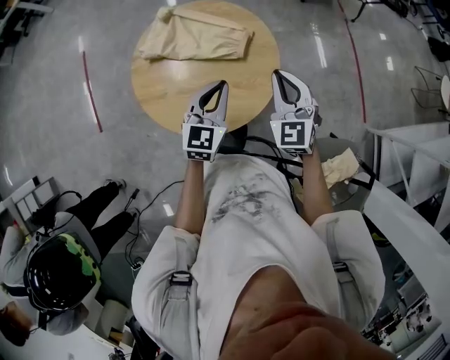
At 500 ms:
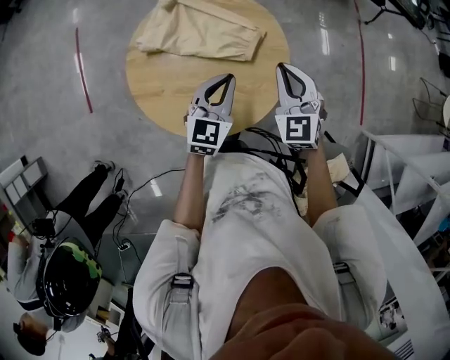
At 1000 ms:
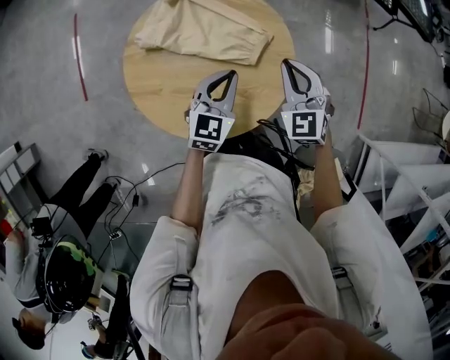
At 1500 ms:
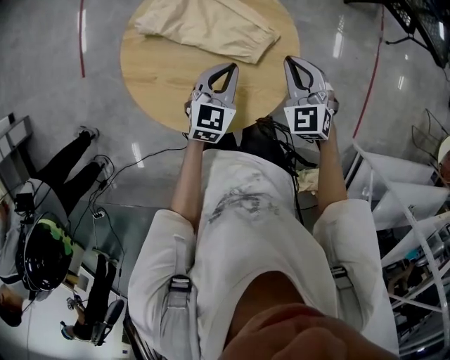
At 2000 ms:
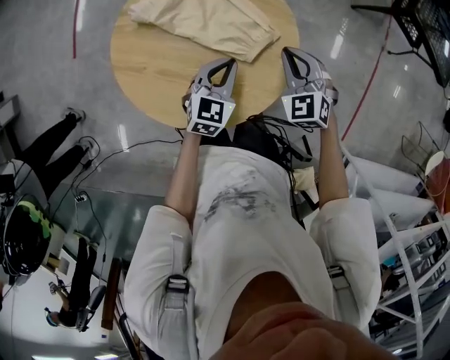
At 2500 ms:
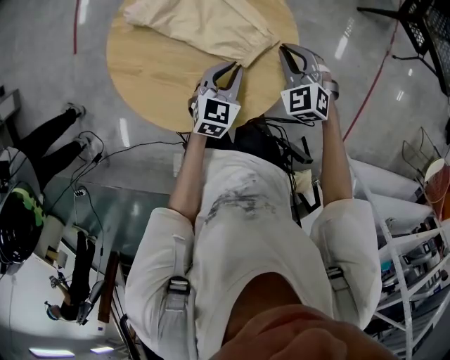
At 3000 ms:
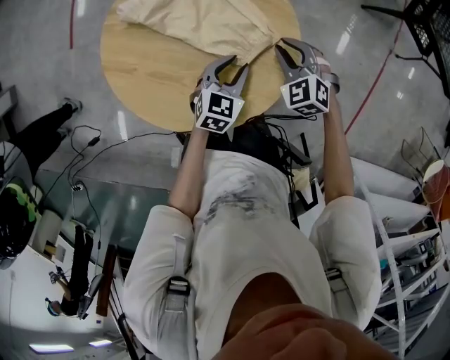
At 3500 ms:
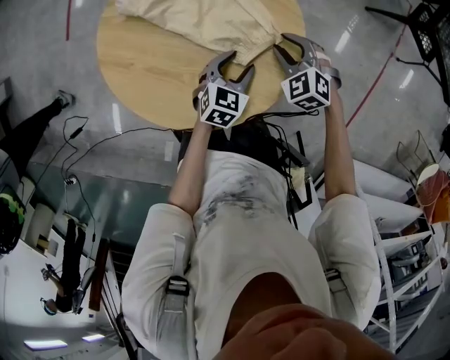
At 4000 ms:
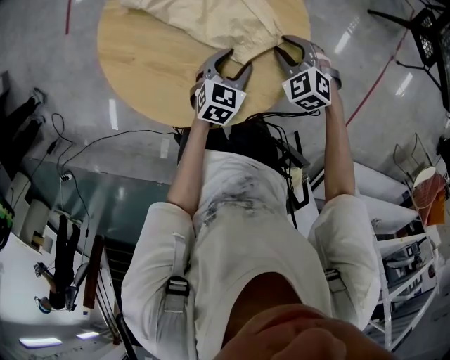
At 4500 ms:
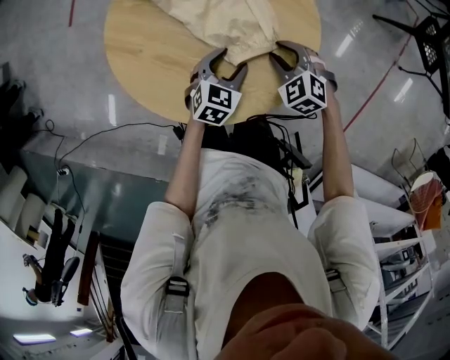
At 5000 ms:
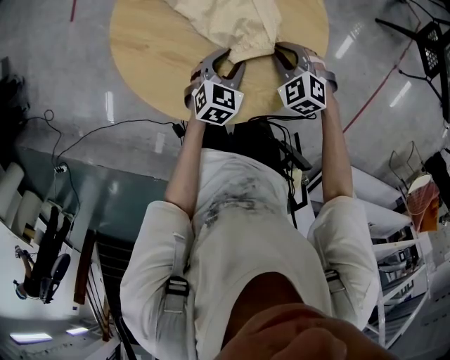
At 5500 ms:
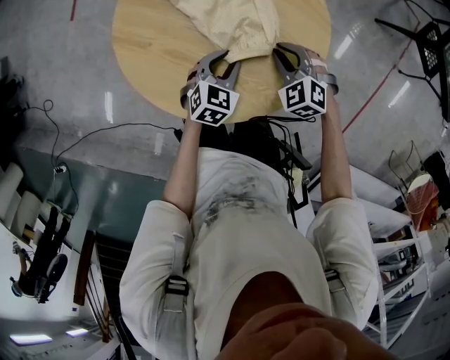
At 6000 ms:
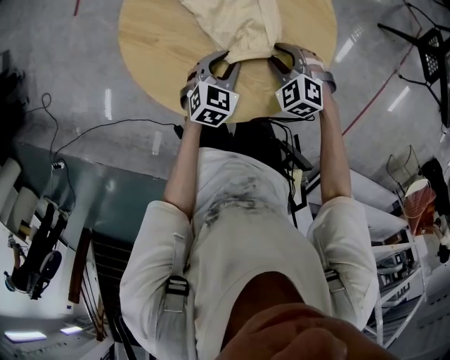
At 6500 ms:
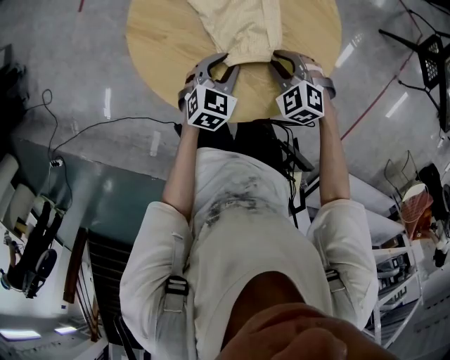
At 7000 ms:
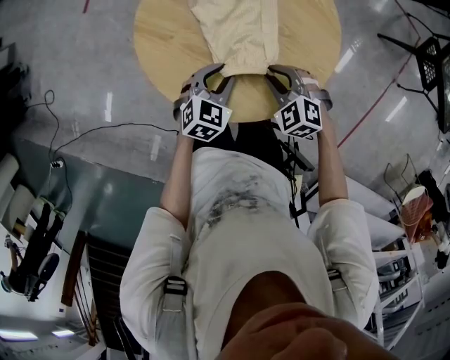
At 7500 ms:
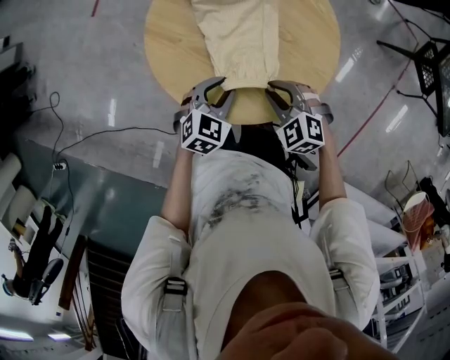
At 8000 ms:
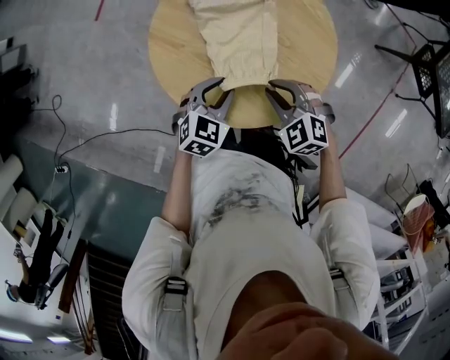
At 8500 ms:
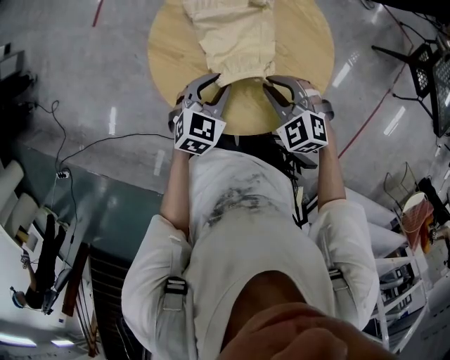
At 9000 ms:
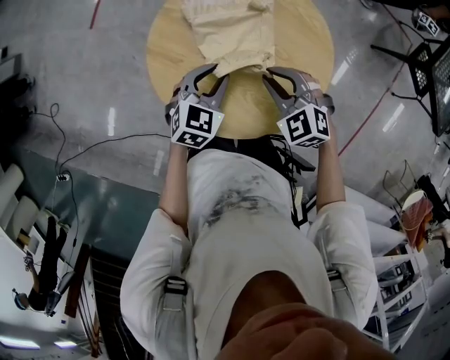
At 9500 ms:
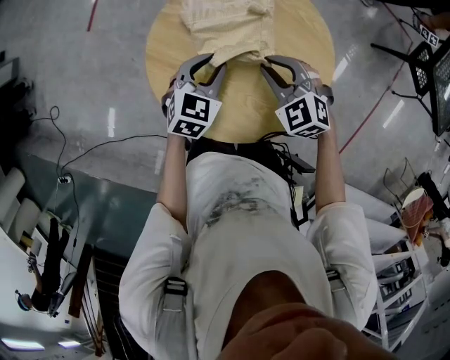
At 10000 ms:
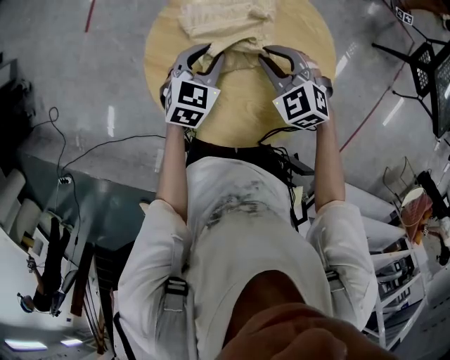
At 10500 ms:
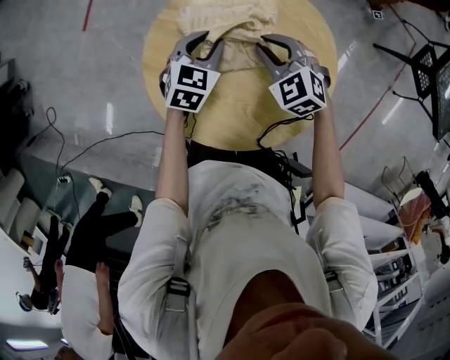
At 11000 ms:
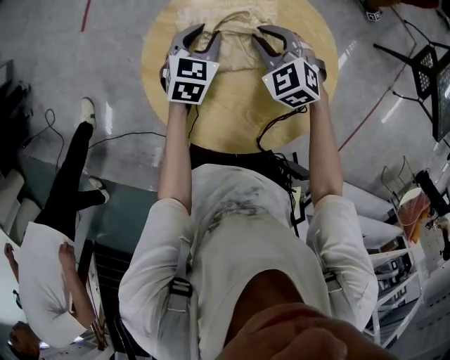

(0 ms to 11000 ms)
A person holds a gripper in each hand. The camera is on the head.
0 ms - 2000 ms: The left gripper travels downward and forward by some 20 cm, and changes its angle by roughly 20 degrees, while the right gripper moves forward and downward, approximately 25 cm, and turns by about 40 degrees.
2000 ms - 3500 ms: The grippers both shift downward by roughly 10 cm. The right gripper rotates some 20 degrees, and opens up. The left gripper opens its fingers.
3500 ms - 5500 ms: The grippers both shift to the left by some 5 cm. The left gripper closes its fingers.
5500 ms - 7500 ms: The left gripper shifts some 10 cm upward, to the left and backward. The right gripper moves backward, to the left and upward, approximately 15 cm.
7500 ms - 9000 ms: Both grippers move forward, about 10 cm.
9000 ms - 11000 ms: Both grippers move forward and downward, roughly 20 cm.

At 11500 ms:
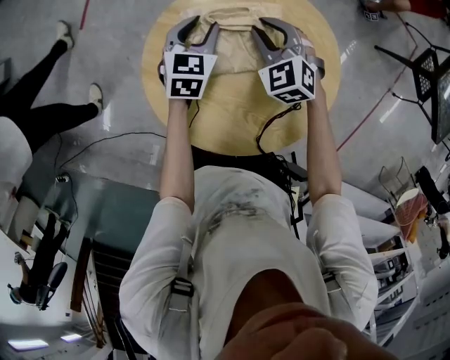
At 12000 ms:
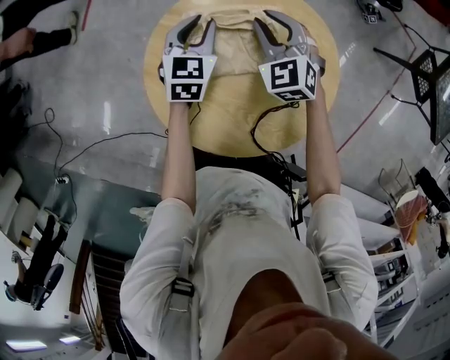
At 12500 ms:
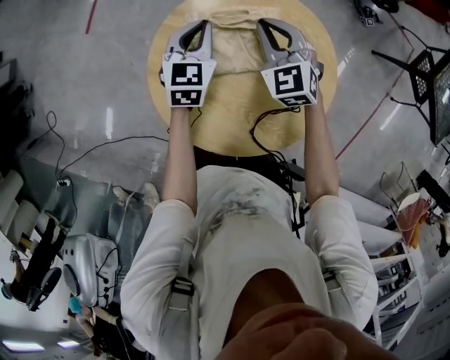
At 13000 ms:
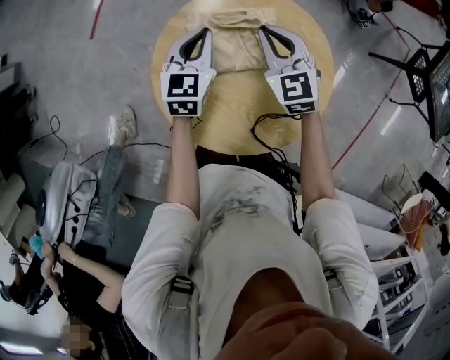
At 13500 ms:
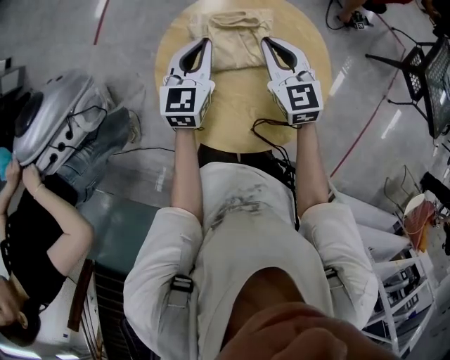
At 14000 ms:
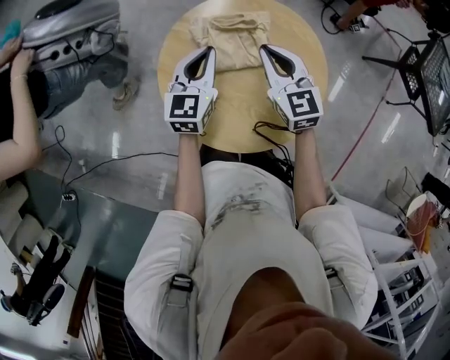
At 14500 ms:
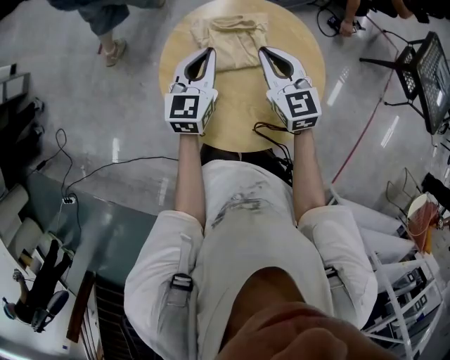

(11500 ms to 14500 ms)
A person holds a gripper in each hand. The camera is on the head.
11500 ms - 13000 ms: Both grippers move upward, about 10 cm. The left gripper closes. The right gripper turns by approximately 20 degrees, and closes up.
13000 ms - 14500 ms: The grippers both shift backward and upward by roughly 10 cm.

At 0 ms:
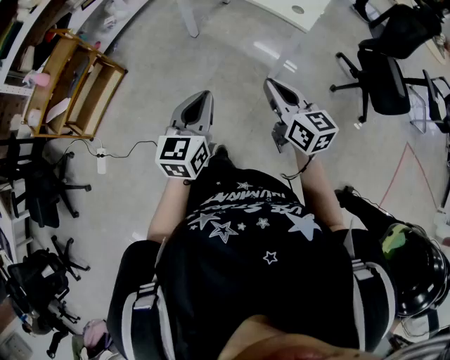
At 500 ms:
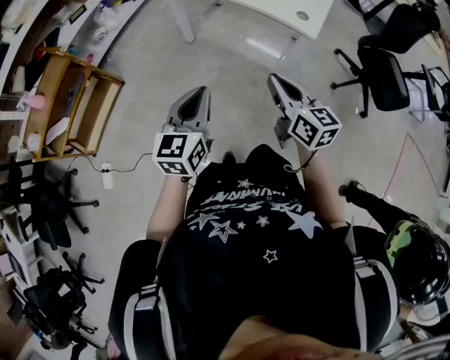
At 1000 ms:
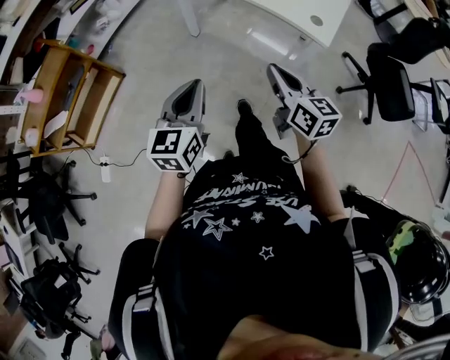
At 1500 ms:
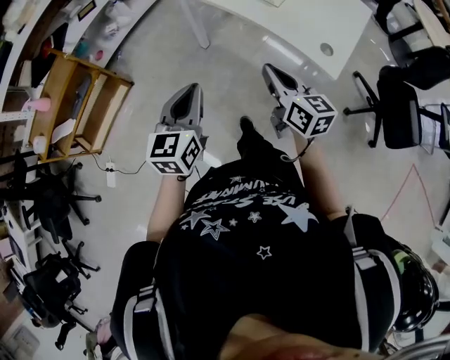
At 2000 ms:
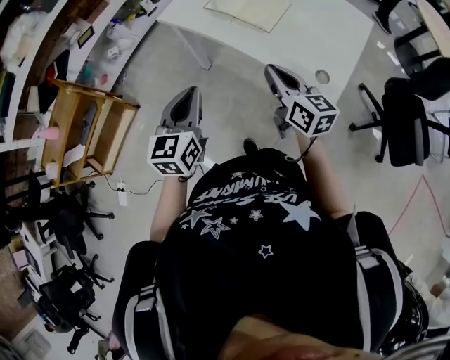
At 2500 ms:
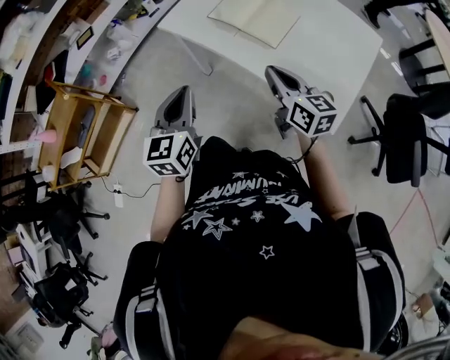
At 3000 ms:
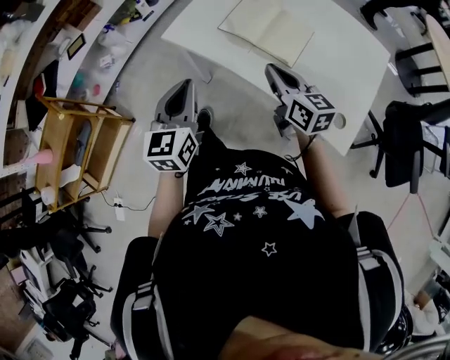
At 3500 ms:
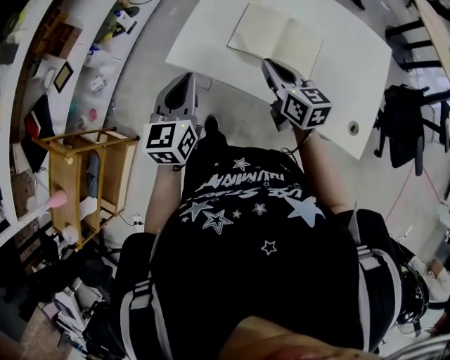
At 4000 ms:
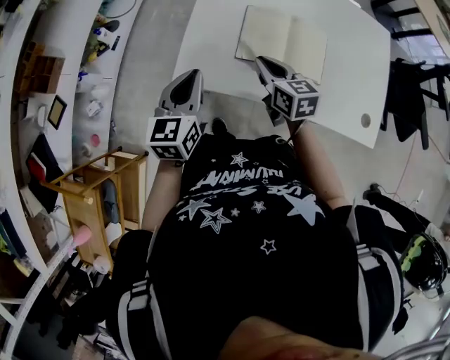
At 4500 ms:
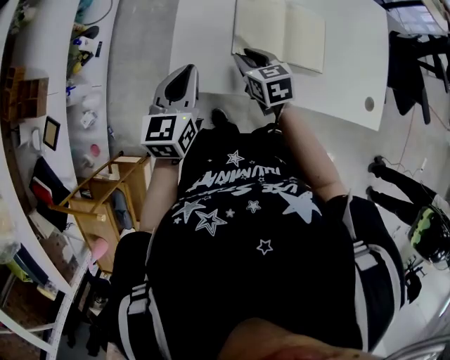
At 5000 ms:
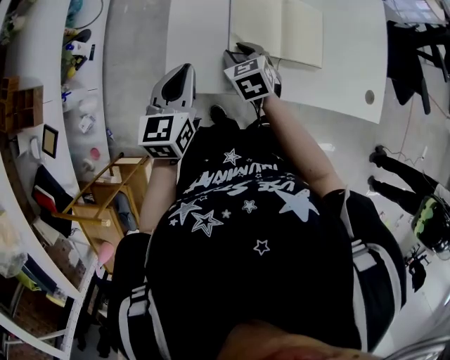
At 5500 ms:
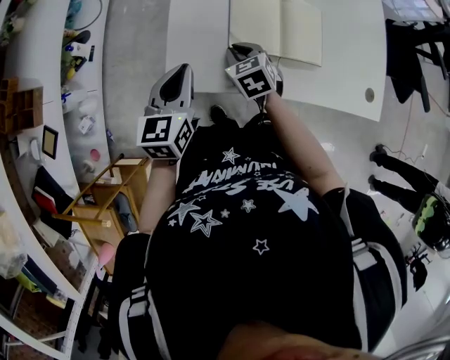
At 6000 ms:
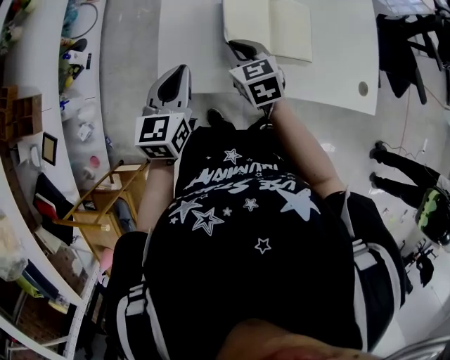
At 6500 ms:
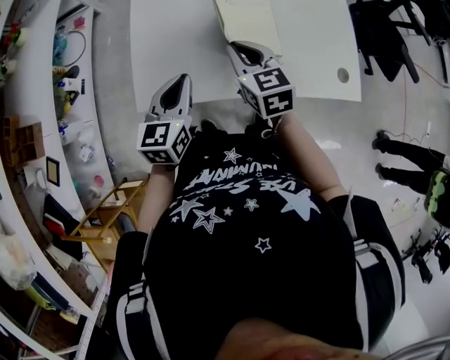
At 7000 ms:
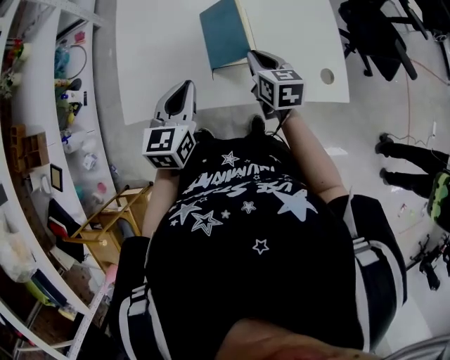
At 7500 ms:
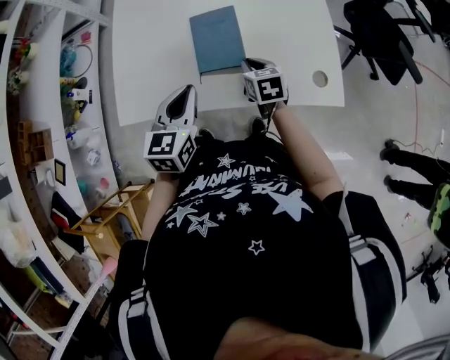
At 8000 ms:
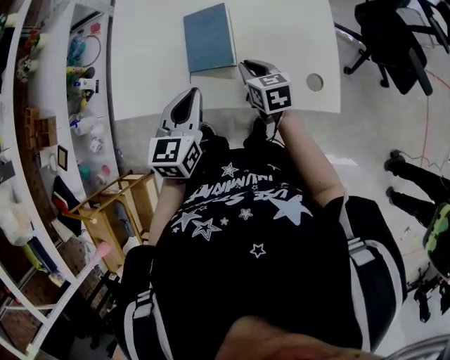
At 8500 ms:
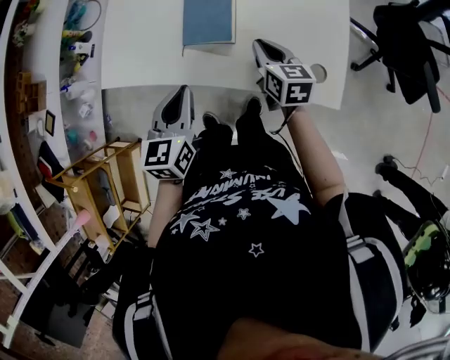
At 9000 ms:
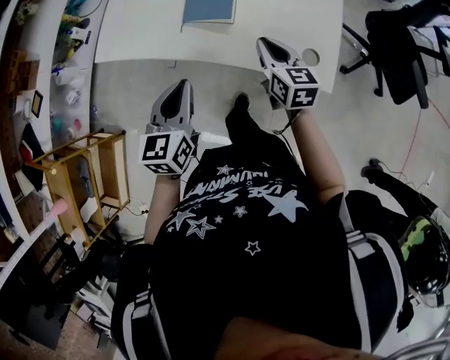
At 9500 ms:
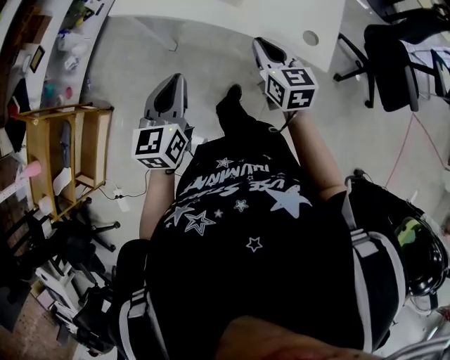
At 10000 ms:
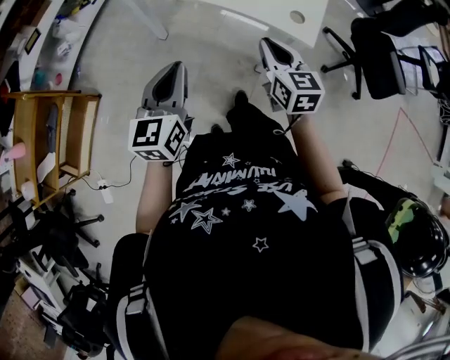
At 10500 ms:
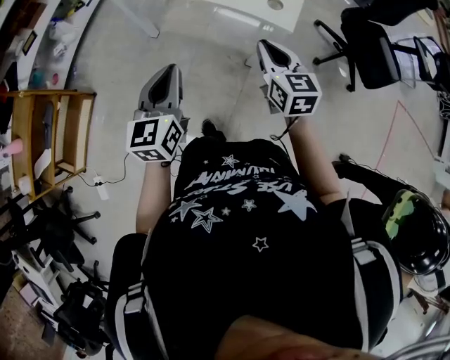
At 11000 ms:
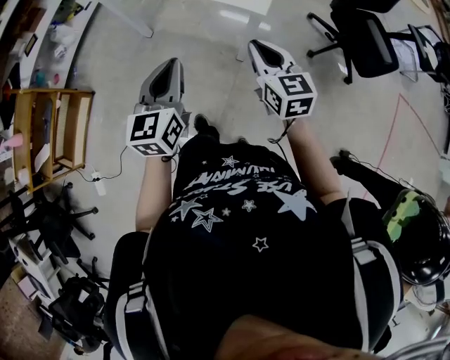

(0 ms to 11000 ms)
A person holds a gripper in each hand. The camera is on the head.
0 ms - 2000 ms: The grippers both shift forward by about 40 cm.
2000 ms - 3500 ms: Both grippers travel together forward, roughly 30 cm.
3500 ms - 5500 ms: The left gripper travels forward and downward by approximately 15 cm, and turns by approximately 20 degrees. The right gripper moves downward, forward and to the left, roughly 20 cm, and angles its fingers downward, by roughly 30 degrees.
5500 ms - 7500 ms: The two grippers go about 25 cm to the right. The right gripper changes its angle by roughly 30 degrees.
7500 ms - 9000 ms: The right gripper heads backward, to the right and upward, covering about 15 cm, and changes its angle by some 20 degrees, while the left gripper heads backward, covering about 15 cm, and turns by about 20 degrees.
9000 ms - 11000 ms: Both grippers move backward, approximately 35 cm.

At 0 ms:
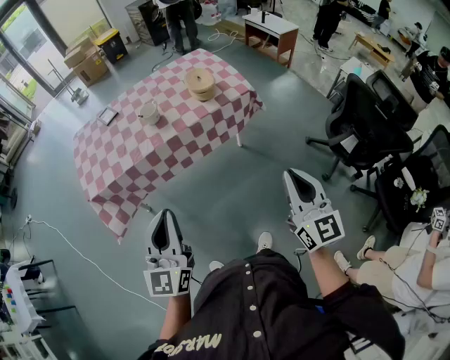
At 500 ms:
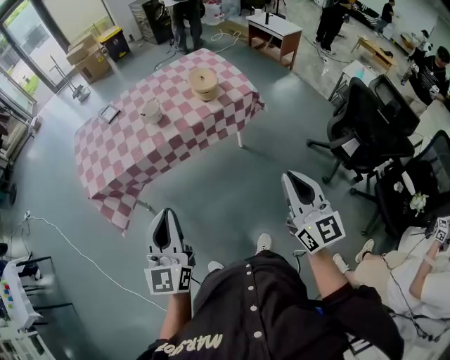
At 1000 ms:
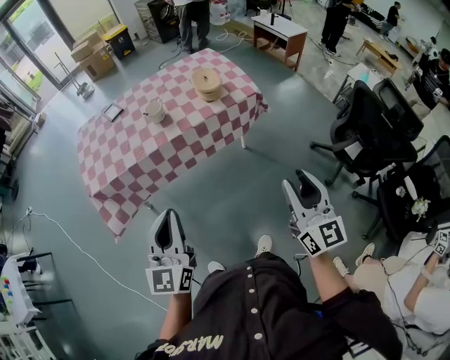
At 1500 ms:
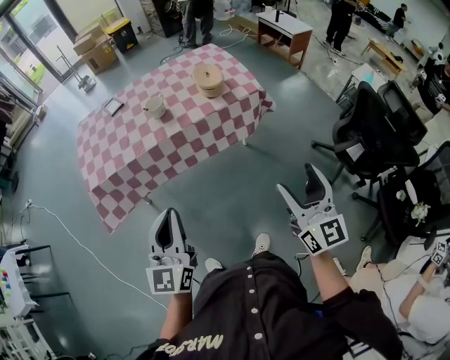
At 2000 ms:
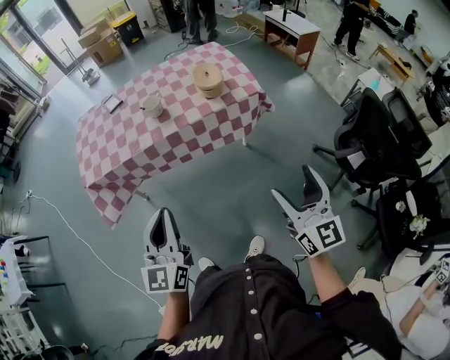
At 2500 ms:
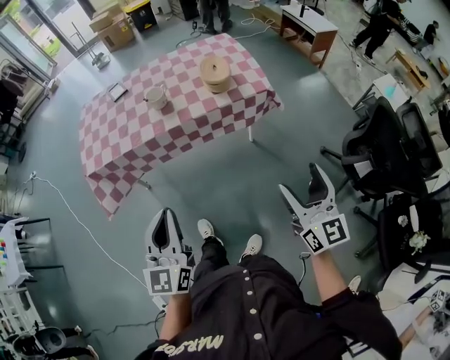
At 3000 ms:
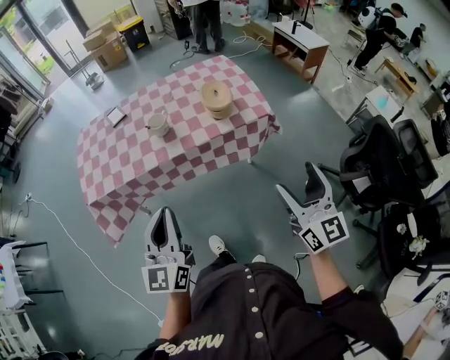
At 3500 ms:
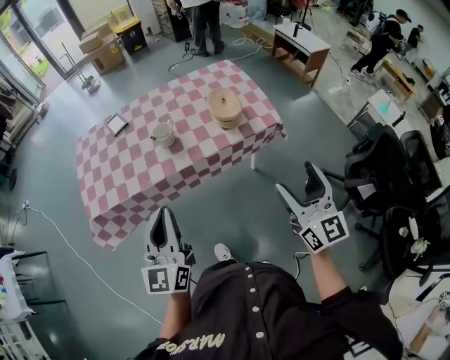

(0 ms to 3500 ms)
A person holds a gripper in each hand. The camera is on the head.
0 ms - 2000 ms: The left gripper changes place by about 5 cm. Meanwhile the right gripper ends up some 5 cm from where it was, and opens its fingers.
2000 ms - 3500 ms: Both grippers move forward, approximately 20 cm.
